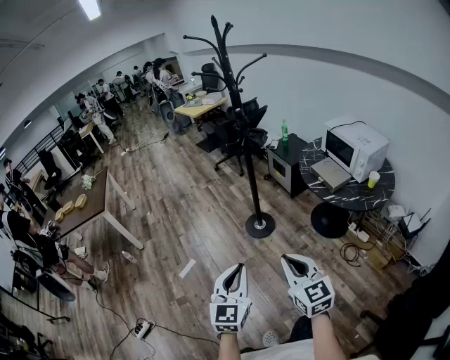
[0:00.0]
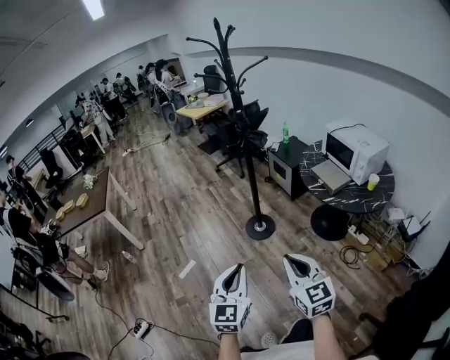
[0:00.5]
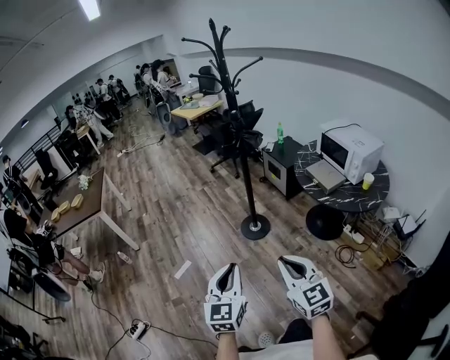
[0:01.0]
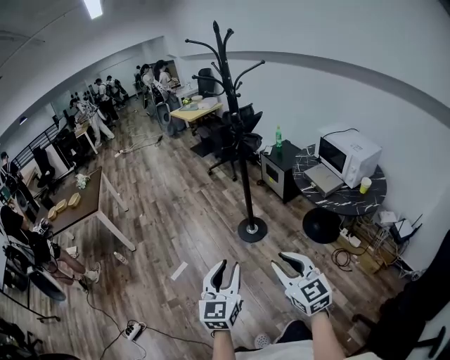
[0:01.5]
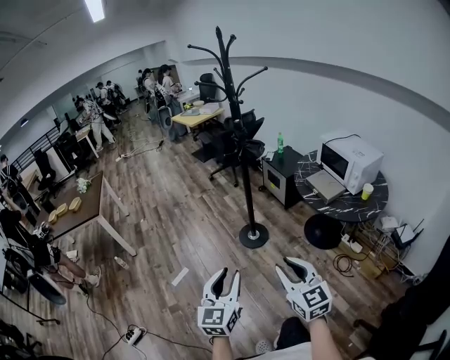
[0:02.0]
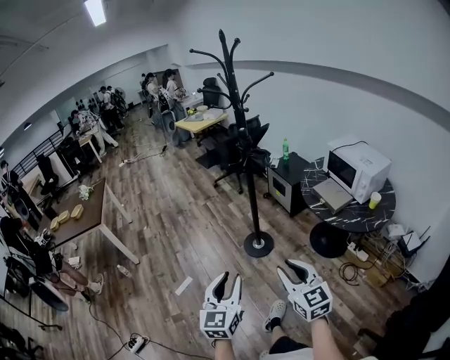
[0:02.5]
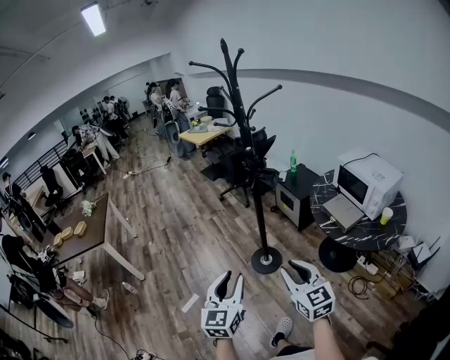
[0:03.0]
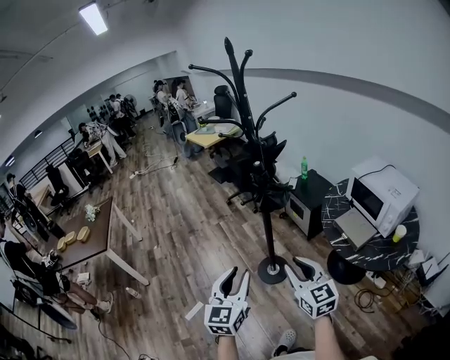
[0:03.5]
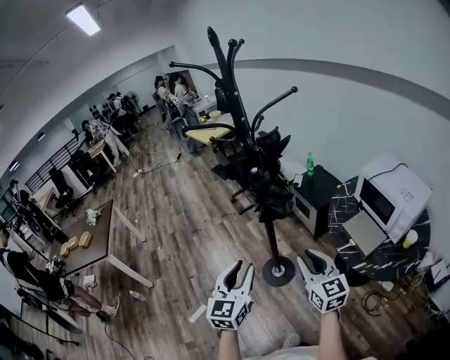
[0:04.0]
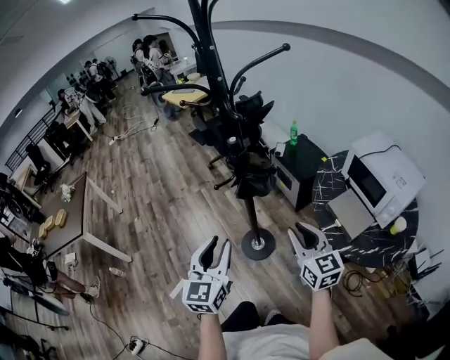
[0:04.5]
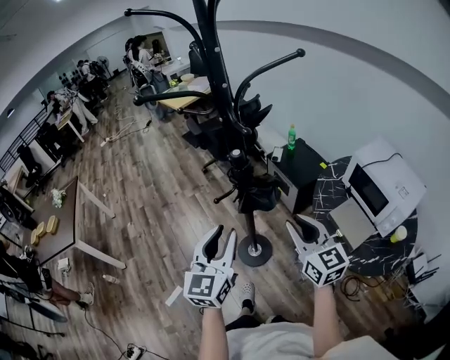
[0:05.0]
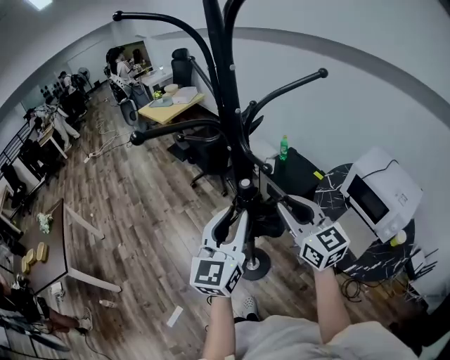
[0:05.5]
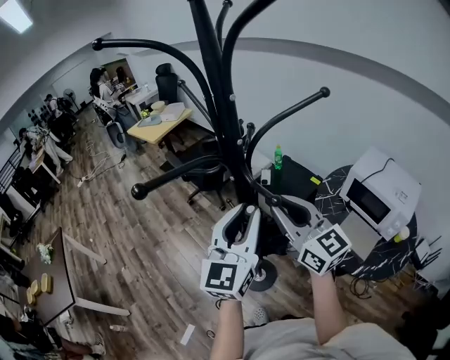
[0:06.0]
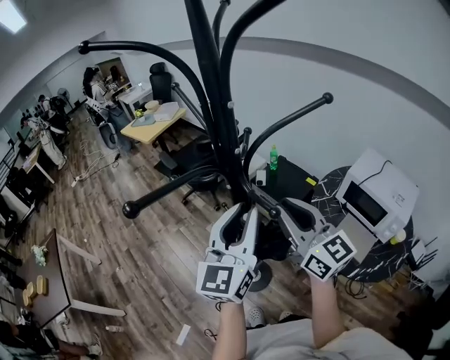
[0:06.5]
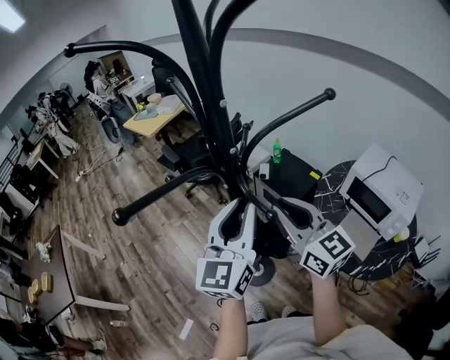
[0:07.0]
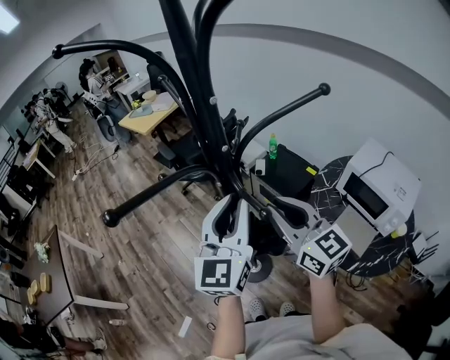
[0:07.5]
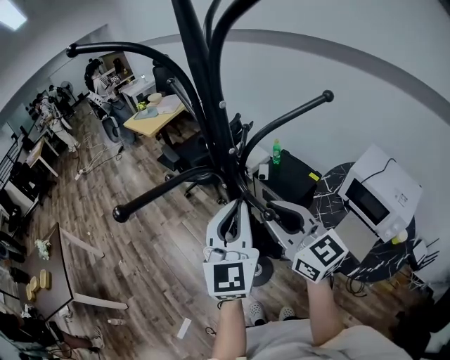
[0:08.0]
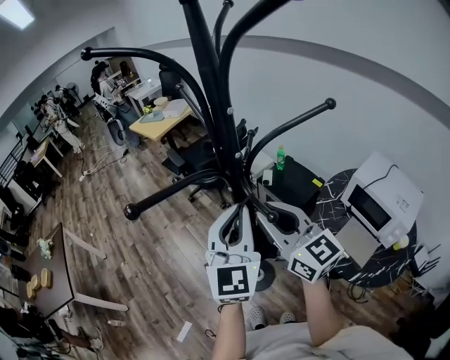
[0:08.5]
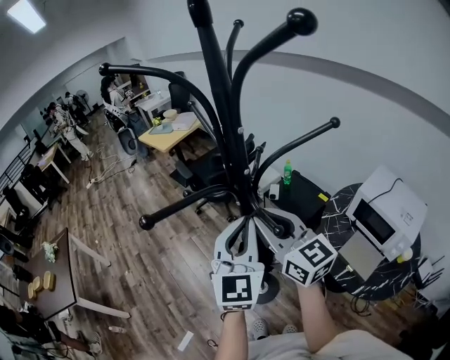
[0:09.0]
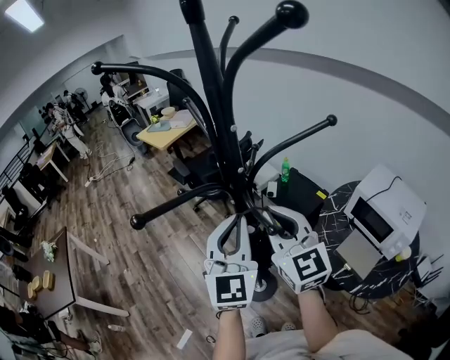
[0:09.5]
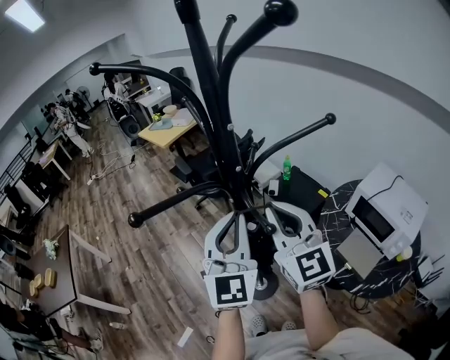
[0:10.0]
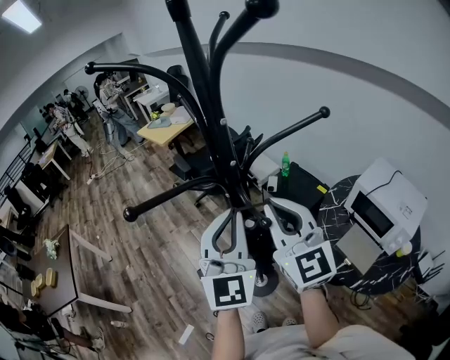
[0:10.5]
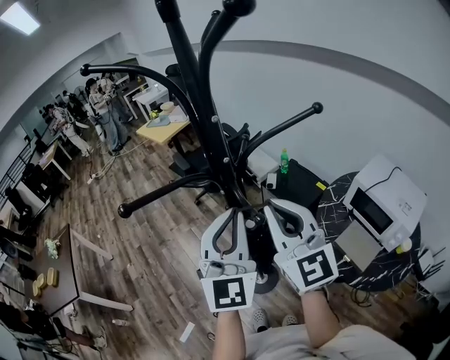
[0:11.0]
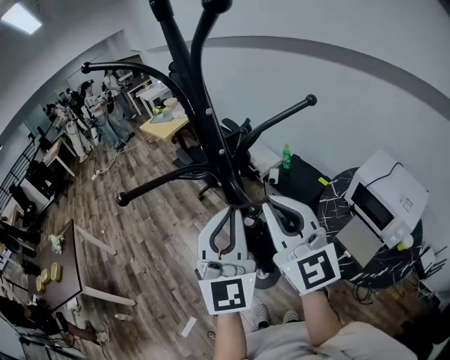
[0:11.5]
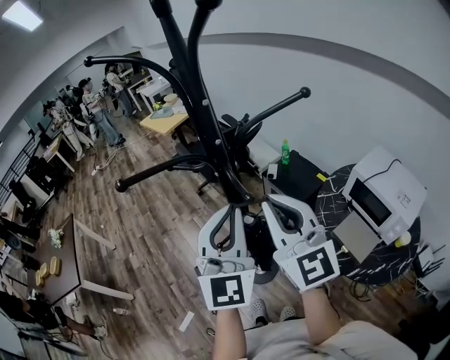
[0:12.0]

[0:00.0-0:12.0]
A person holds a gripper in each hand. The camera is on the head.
0:00.0 to 0:02.0: The right gripper opens up. Meanwhile the left gripper opens its fingers.
0:02.0 to 0:04.0: The pair of grippers is taken forward, roughly 40 cm.
0:04.0 to 0:06.0: The grippers both shift forward and upward by approximately 35 cm. The left gripper turns by about 20 degrees.
0:06.0 to 0:08.0: The grippers move only a little.
0:08.0 to 0:10.0: The right gripper shifts by approximately 5 cm.
0:10.0 to 0:12.0: Both grippers move backward, about 5 cm.

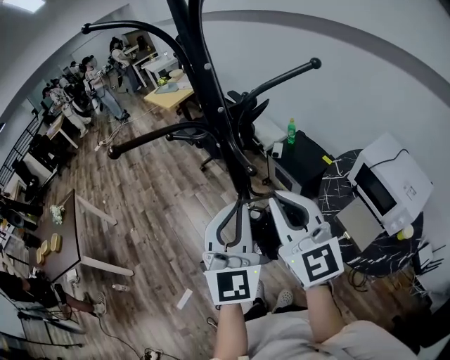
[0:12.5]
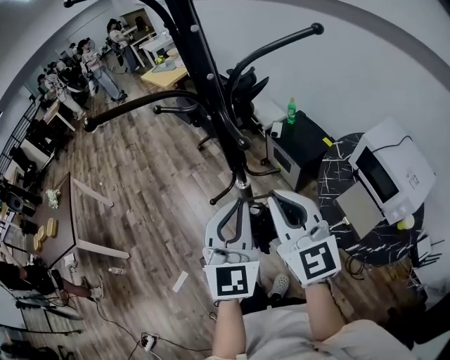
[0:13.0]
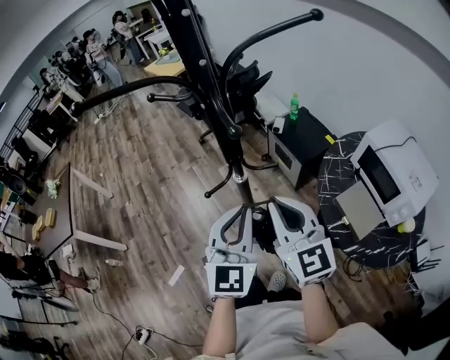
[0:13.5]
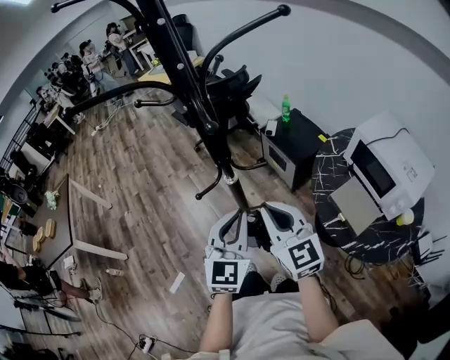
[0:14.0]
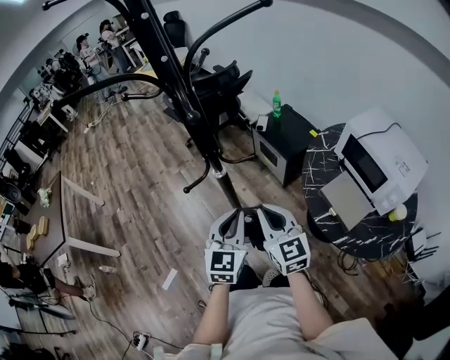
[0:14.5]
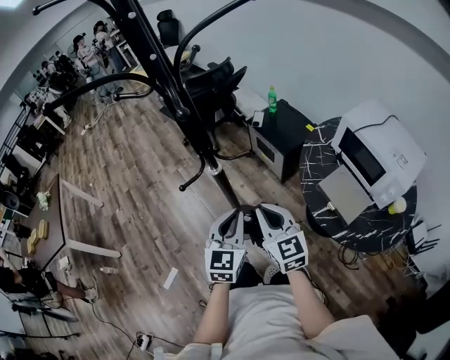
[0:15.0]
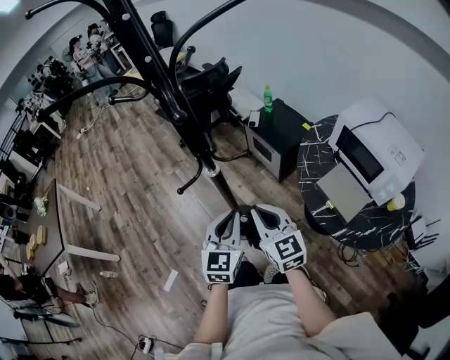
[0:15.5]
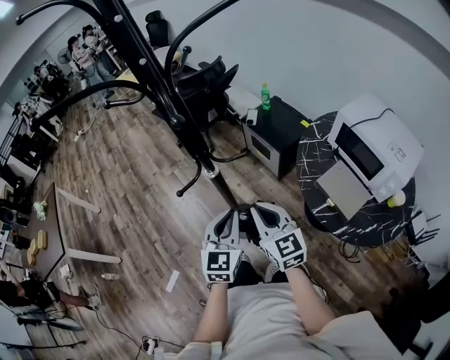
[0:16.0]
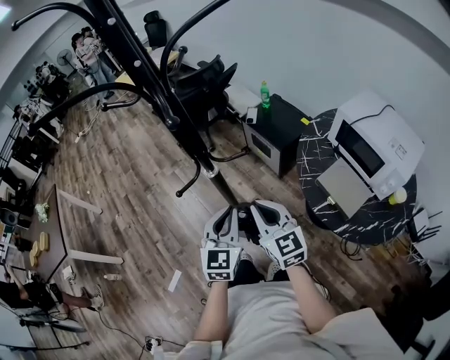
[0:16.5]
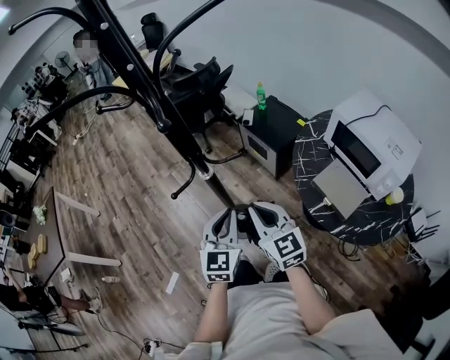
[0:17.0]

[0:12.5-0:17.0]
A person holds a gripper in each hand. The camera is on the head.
0:12.5 to 0:14.5: The two grippers go about 25 cm downward. The left gripper swivels approximately 20 degrees.
0:14.5 to 0:17.0: The grippers make only small movements.

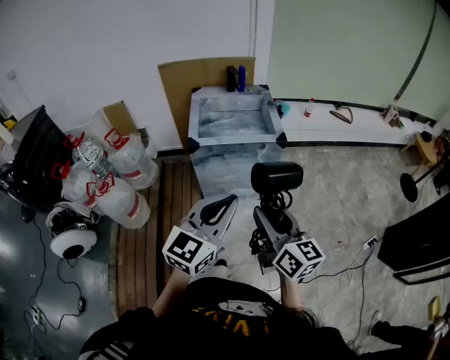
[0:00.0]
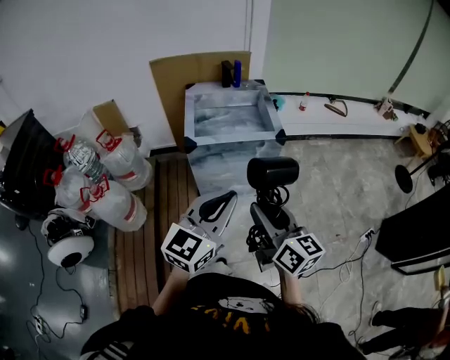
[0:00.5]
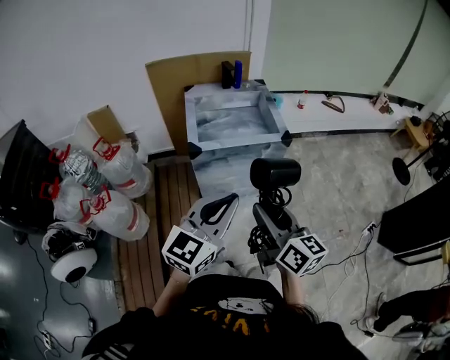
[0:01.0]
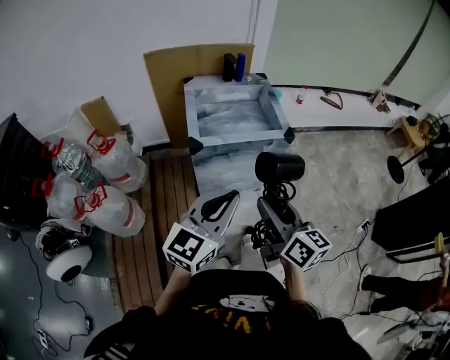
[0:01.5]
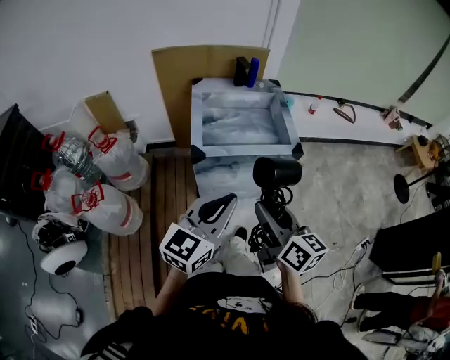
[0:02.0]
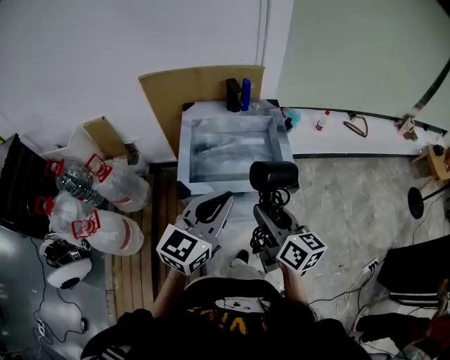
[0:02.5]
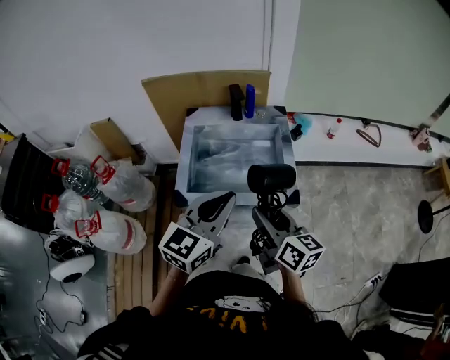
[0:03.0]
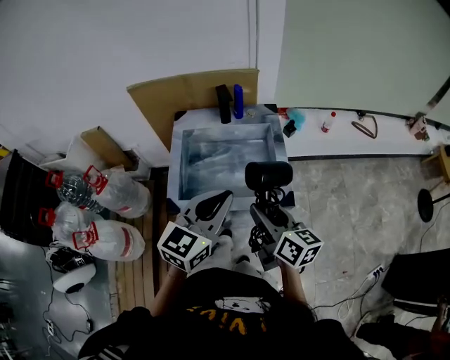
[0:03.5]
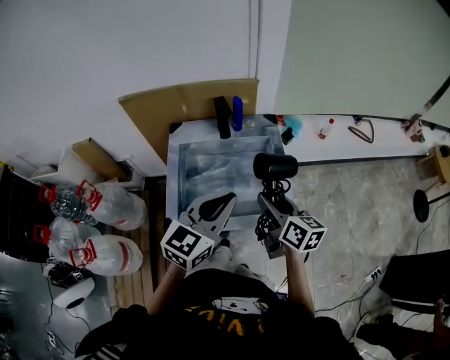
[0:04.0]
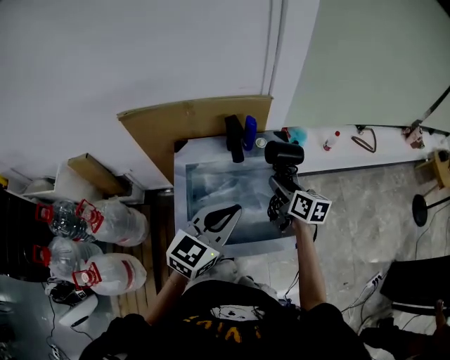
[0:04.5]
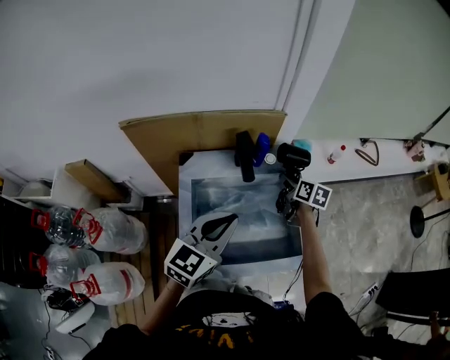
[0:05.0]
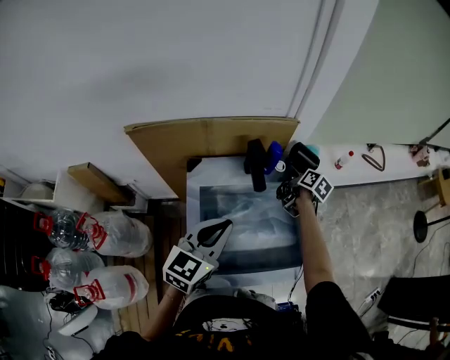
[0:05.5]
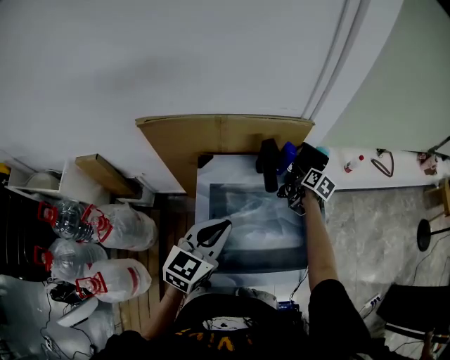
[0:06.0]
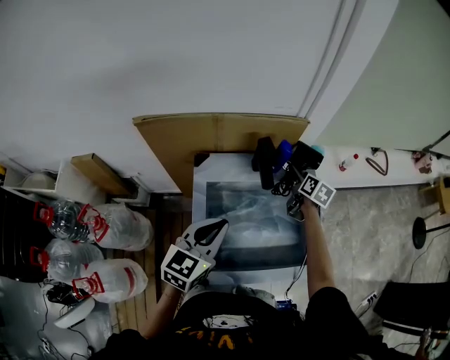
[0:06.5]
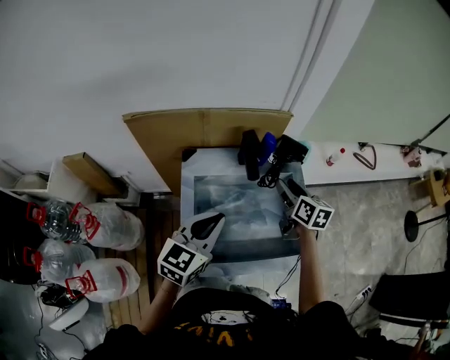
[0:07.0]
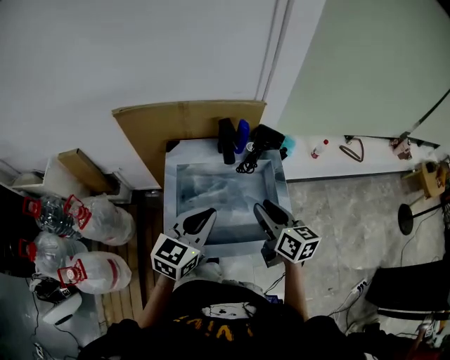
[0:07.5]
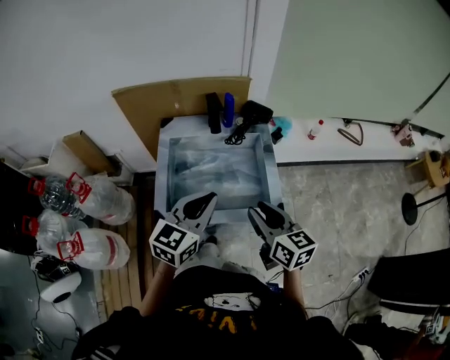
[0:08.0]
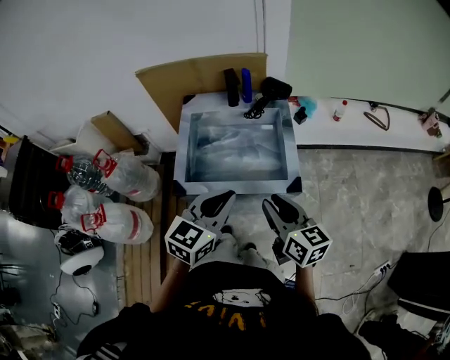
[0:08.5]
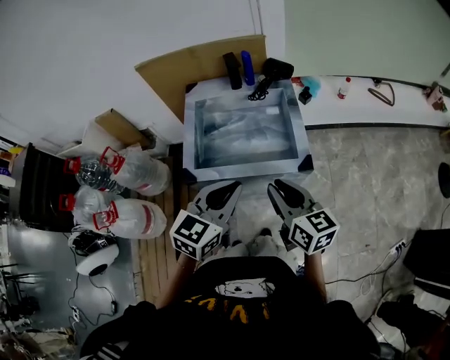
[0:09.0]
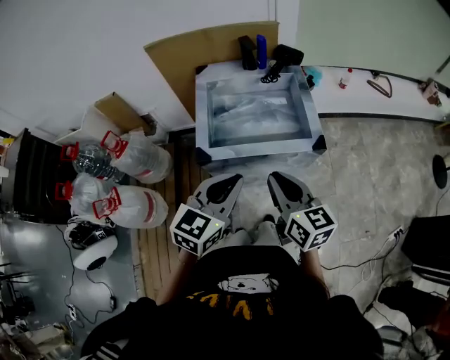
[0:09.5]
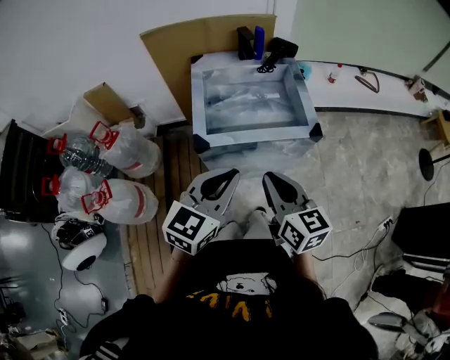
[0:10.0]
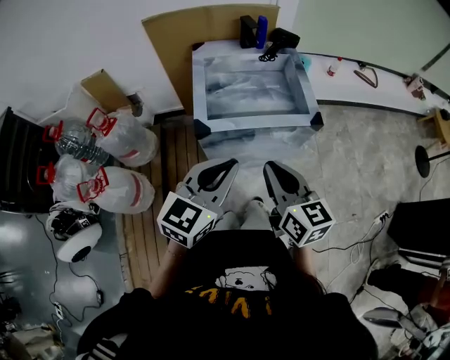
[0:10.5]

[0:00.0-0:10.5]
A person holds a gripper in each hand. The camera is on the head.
0:00.0 to 0:02.0: The two grippers go some 20 cm forward and to the left.
0:02.0 to 0:04.0: The two grippers go roughly 35 cm forward.
0:04.0 to 0:06.5: The left gripper travels to the left and forward by approximately 20 cm; the right gripper heads forward, covering approximately 30 cm, and rotates about 30 degrees.
0:06.5 to 0:08.5: The right gripper moves backward, about 40 cm, swivels some 40 degrees, and closes its fingers. Meanwhile the left gripper is displaced backward and to the right by some 30 cm.
0:08.5 to 0:10.5: The two grippers go about 20 cm backward and to the left.
